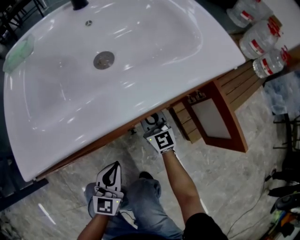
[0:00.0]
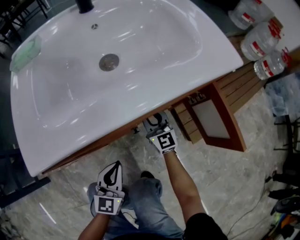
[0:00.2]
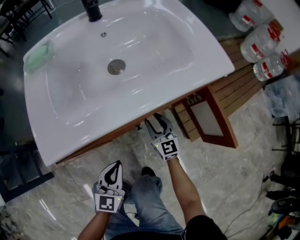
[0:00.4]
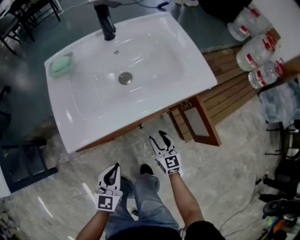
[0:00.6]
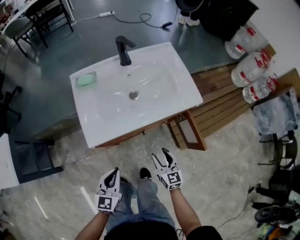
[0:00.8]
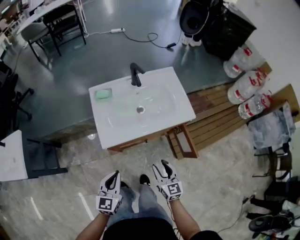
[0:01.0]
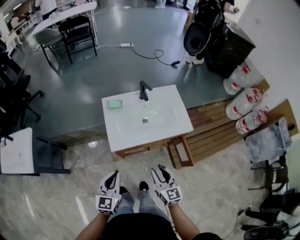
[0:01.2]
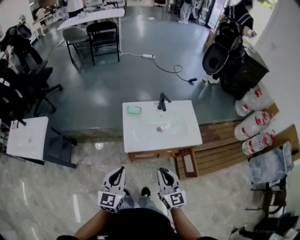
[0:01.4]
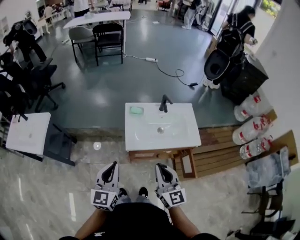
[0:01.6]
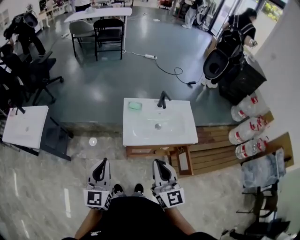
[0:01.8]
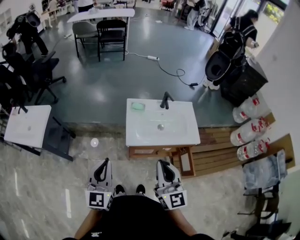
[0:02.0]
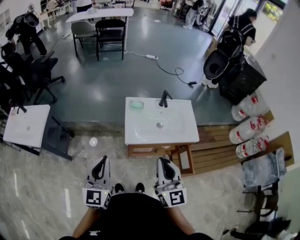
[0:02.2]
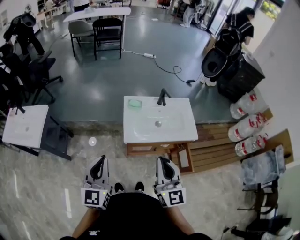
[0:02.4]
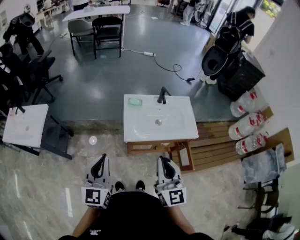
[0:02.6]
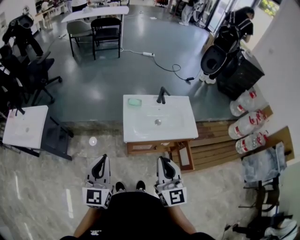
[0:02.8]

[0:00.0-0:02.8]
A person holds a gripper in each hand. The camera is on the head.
0:00.0 to 0:01.4: The left gripper heads upward, covering about 60 cm, and turns by approximately 20 degrees. Meanwhile the right gripper goes some 60 cm upward and backward, and opens, then closes again.
0:01.4 to 0:02.8: The left gripper heads upward and to the left, covering approximately 10 cm; the right gripper travels upward by some 15 cm.

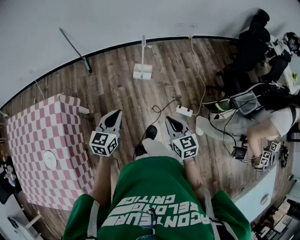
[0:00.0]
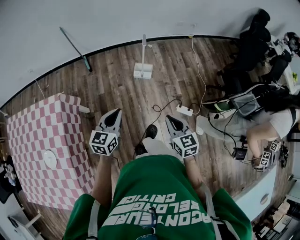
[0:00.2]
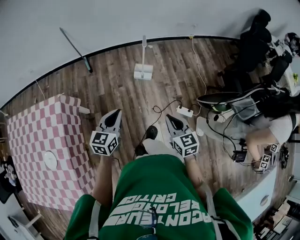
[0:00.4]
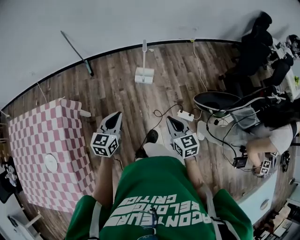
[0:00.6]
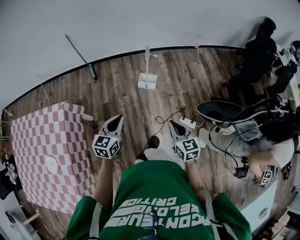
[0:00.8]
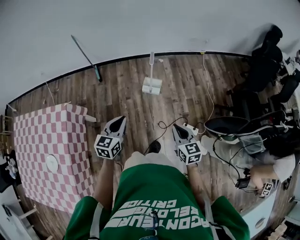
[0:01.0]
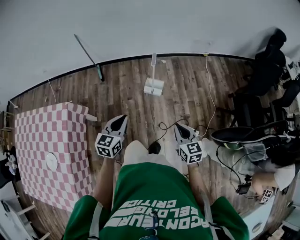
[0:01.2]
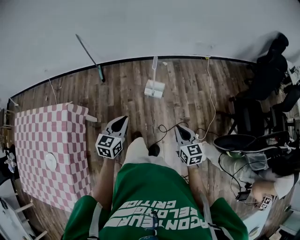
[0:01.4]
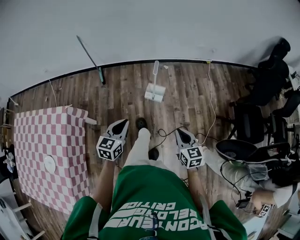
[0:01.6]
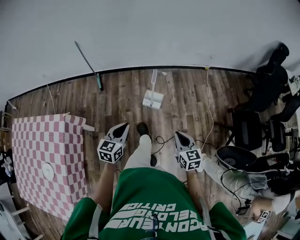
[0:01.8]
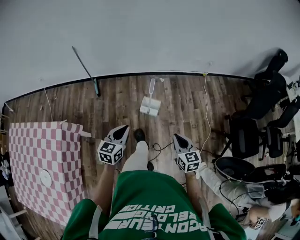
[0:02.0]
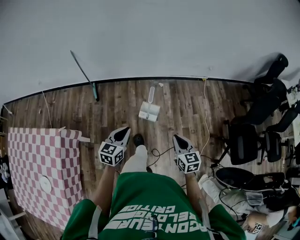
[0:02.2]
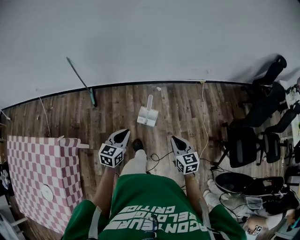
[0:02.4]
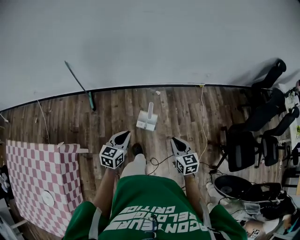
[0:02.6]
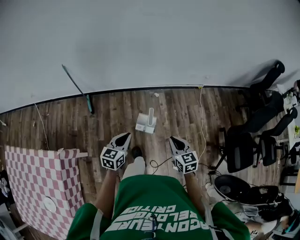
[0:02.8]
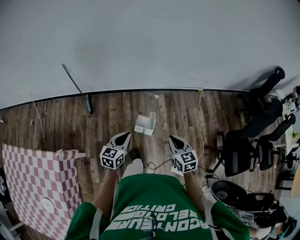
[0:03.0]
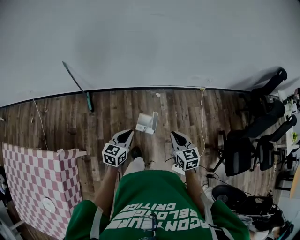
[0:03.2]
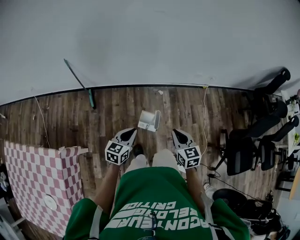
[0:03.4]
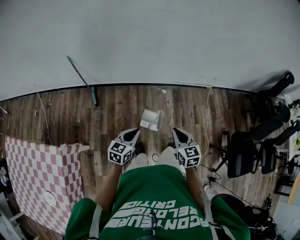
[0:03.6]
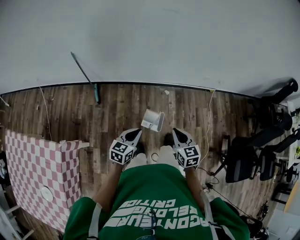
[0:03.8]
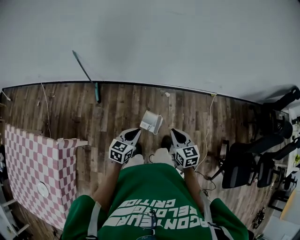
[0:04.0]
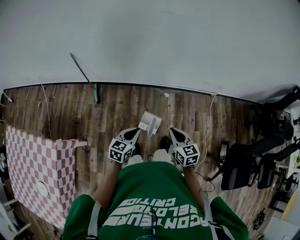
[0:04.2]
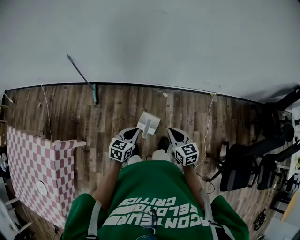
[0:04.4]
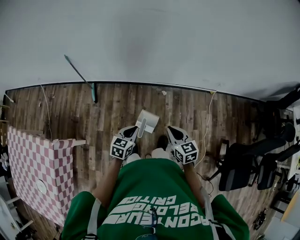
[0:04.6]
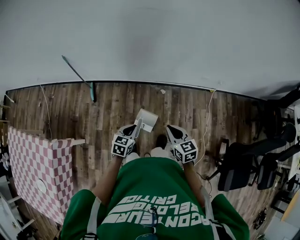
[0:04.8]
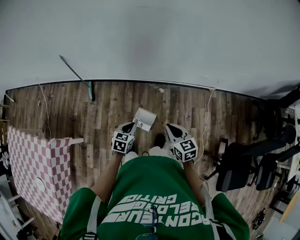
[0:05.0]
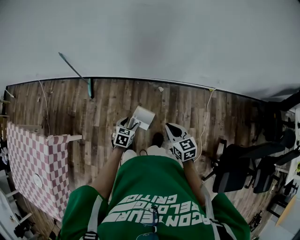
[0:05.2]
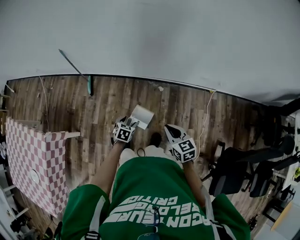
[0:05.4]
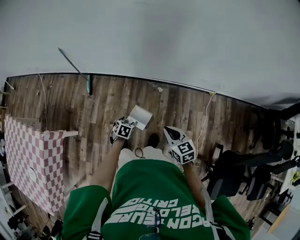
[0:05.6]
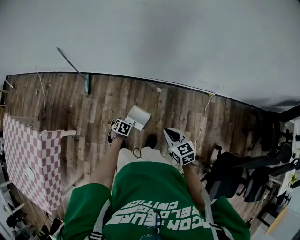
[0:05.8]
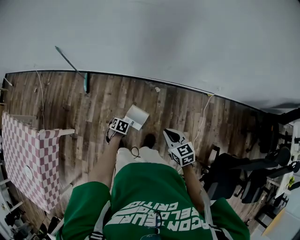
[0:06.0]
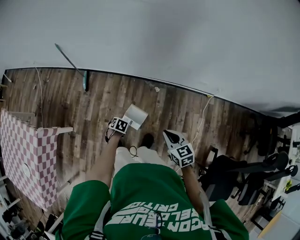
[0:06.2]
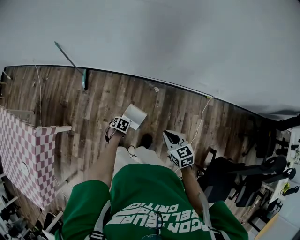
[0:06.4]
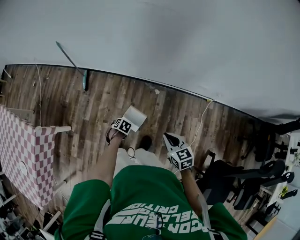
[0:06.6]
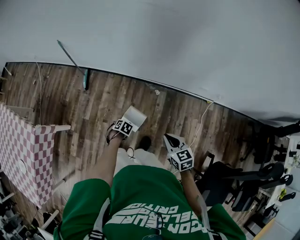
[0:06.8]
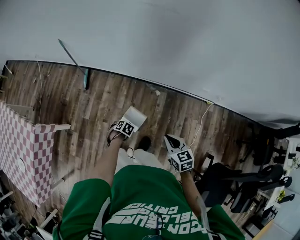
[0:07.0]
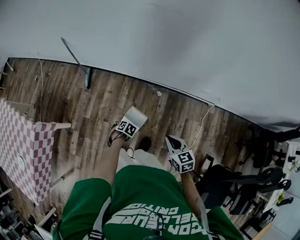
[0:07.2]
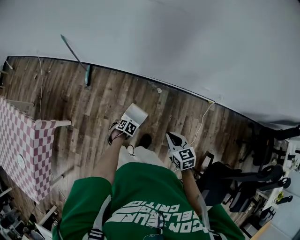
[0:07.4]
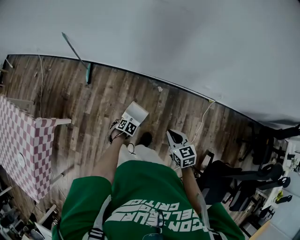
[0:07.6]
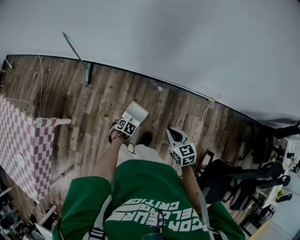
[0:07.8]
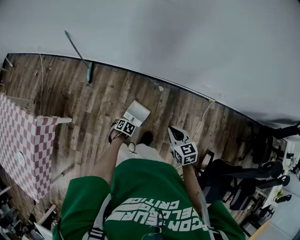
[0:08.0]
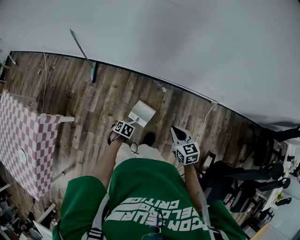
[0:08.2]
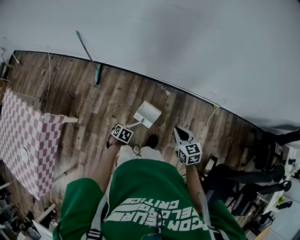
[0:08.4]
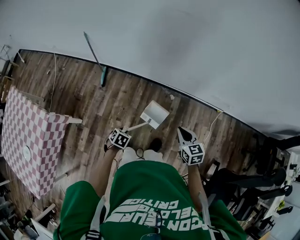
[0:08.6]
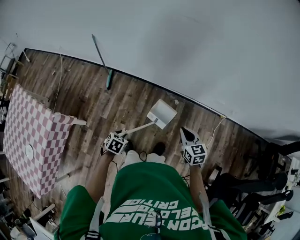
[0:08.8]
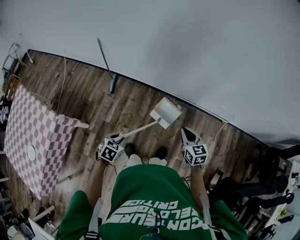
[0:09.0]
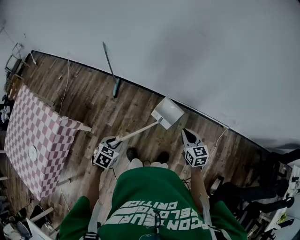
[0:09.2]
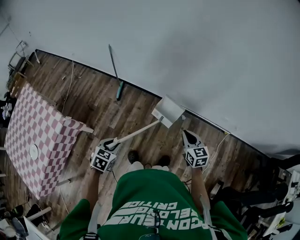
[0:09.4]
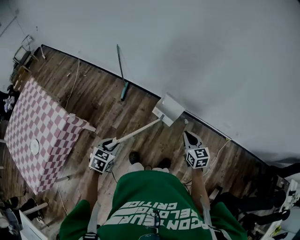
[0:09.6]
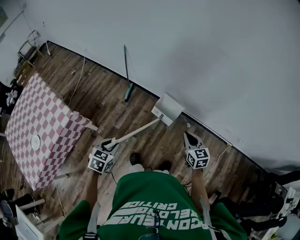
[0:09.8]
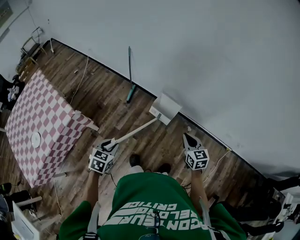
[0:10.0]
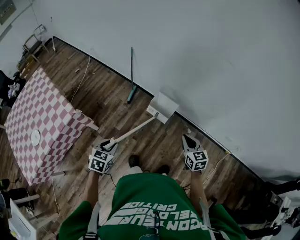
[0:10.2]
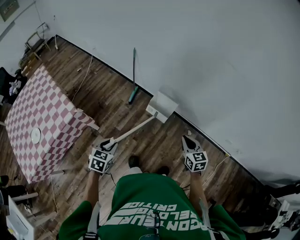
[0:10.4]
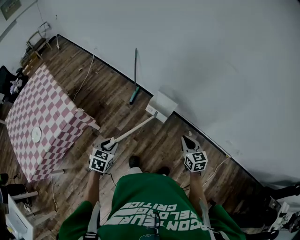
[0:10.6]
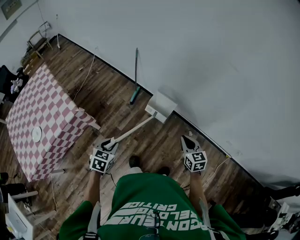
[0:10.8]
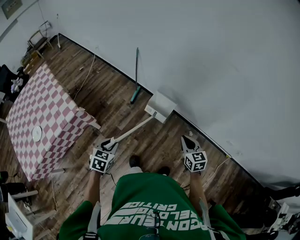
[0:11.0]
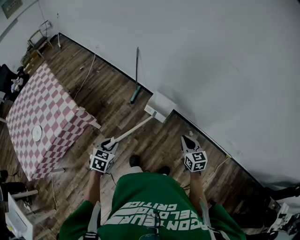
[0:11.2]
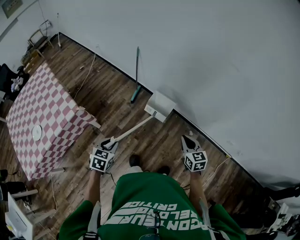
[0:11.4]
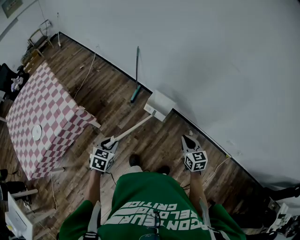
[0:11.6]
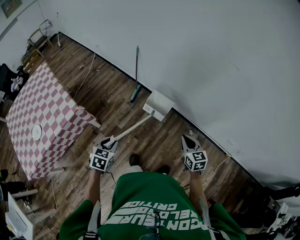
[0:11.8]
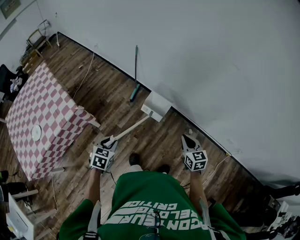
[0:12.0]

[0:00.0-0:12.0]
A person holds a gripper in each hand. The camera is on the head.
0:00.0 to 0:01.6: The left gripper shifts some 15 cm forward; the right gripper travels forward and to the right by approximately 15 cm.
0:01.6 to 0:03.0: The grippers both shift forward by about 30 cm.
0:03.0 to 0:04.4: The left gripper is displaced to the right and forward by roughly 15 cm, while the right gripper is displaced forward by about 10 cm.
0:04.4 to 0:06.0: The left gripper shifts some 20 cm downward, tilts its fingers about 50 degrees downward, and opens up; the right gripper moves about 15 cm.
0:06.0 to 0:07.6: The left gripper closes up.
0:07.6 to 0:09.0: The right gripper changes place by approximately 10 cm. Meanwhile the left gripper shifts about 20 cm upward, and swivels some 30 degrees.
0:09.0 to 0:10.4: The left gripper travels to the left and upward by some 20 cm, and changes its angle by approximately 30 degrees; the right gripper shifts roughly 15 cm to the left.
0:10.4 to 0:12.0: The grippers move only a little.

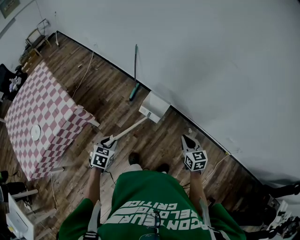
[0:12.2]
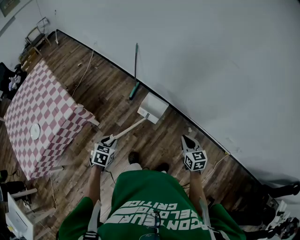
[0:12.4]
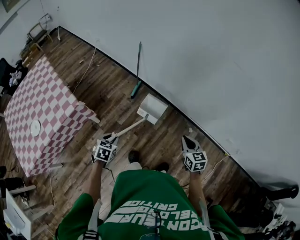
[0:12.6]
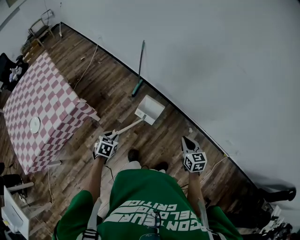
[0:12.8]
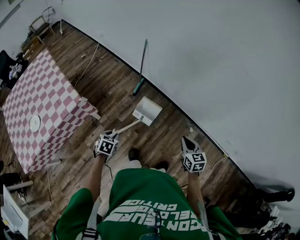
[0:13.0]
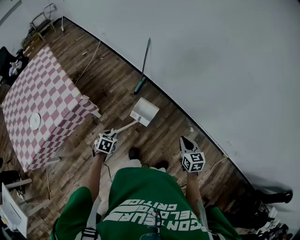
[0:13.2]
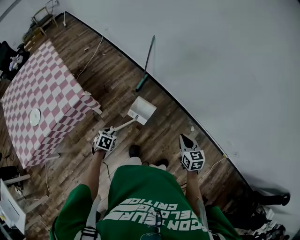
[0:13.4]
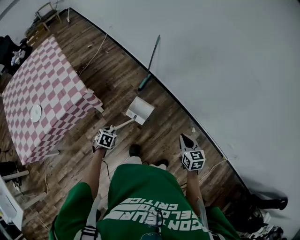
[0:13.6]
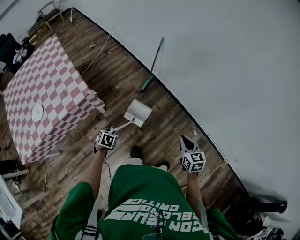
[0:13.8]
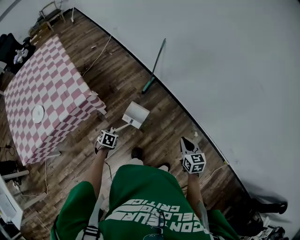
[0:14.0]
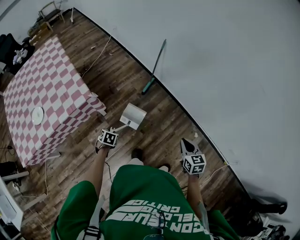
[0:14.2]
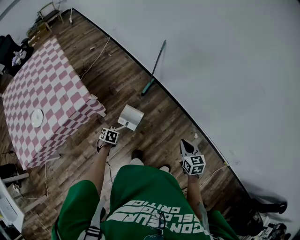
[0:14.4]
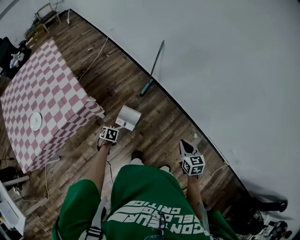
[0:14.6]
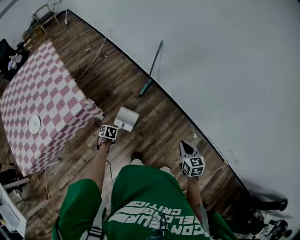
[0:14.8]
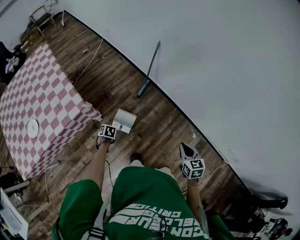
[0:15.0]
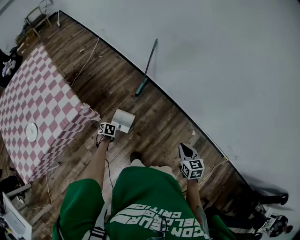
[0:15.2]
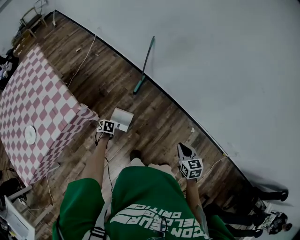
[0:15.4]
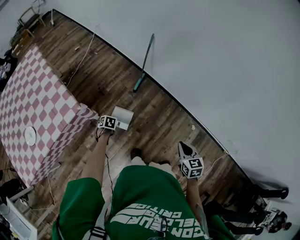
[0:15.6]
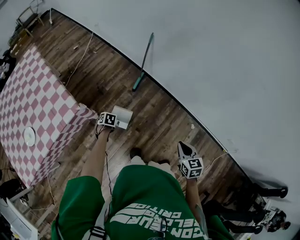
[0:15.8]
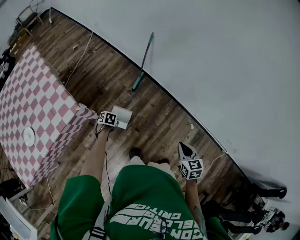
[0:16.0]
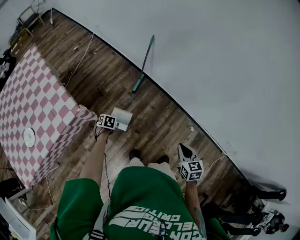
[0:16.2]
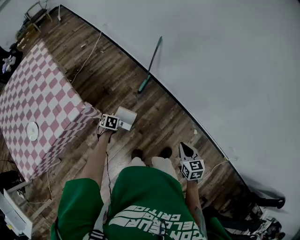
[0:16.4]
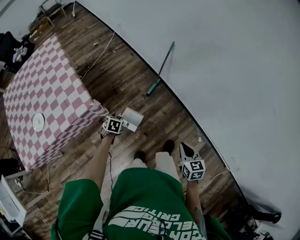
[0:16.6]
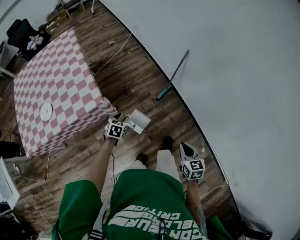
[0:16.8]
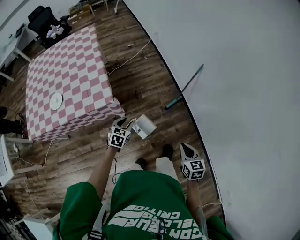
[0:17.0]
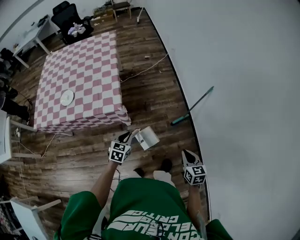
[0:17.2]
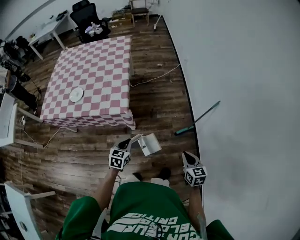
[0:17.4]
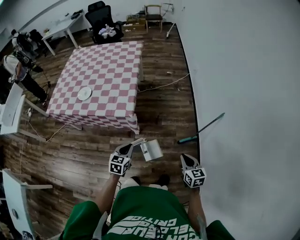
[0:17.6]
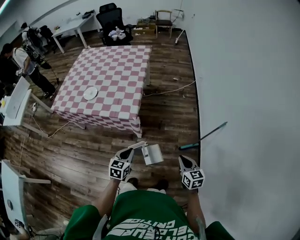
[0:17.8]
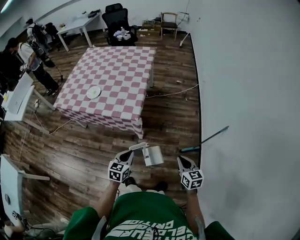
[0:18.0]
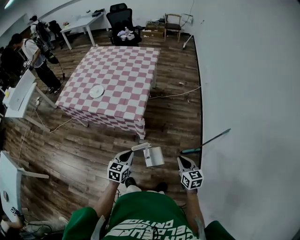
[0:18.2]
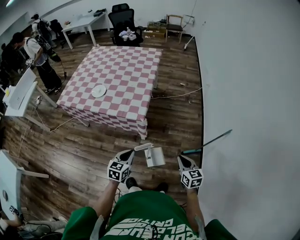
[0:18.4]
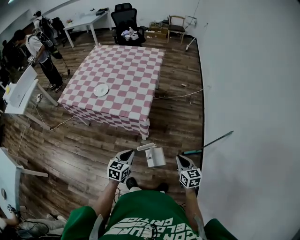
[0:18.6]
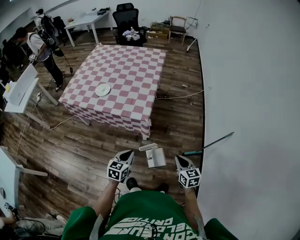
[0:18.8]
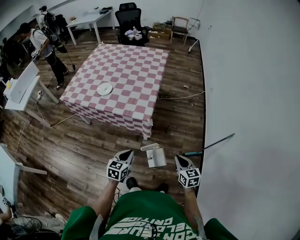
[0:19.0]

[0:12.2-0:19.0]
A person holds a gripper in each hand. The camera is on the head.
0:12.2 to 0:13.6: The right gripper travels to the left by approximately 10 cm, while the left gripper shifts approximately 20 cm downward and to the left.
0:13.6 to 0:15.0: The left gripper shifts by roughly 15 cm; the right gripper moves about 5 cm.
0:15.0 to 0:16.2: The left gripper shifts by some 10 cm.
0:16.2 to 0:17.6: The left gripper is displaced upward by about 25 cm, tips its fingers upward by approximately 40 degrees, and closes up; the right gripper shifts by some 25 cm, and changes its angle by some 50 degrees.
0:17.6 to 0:19.0: The grippers both shift to the left by approximately 10 cm.

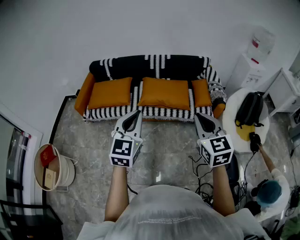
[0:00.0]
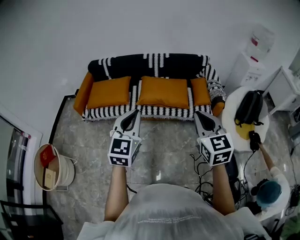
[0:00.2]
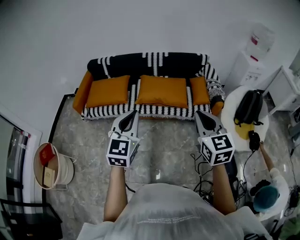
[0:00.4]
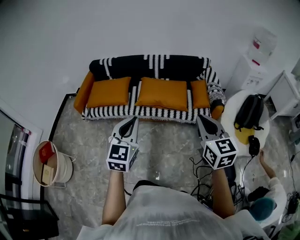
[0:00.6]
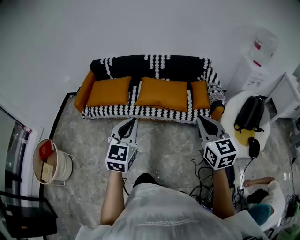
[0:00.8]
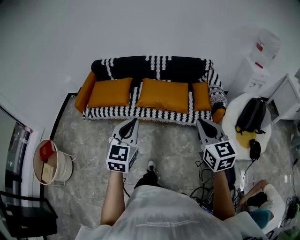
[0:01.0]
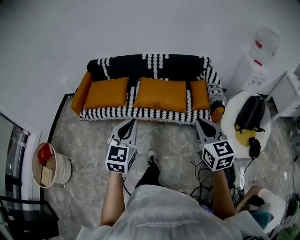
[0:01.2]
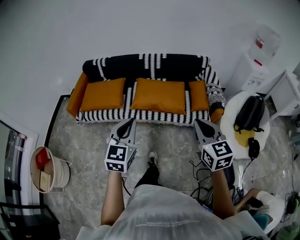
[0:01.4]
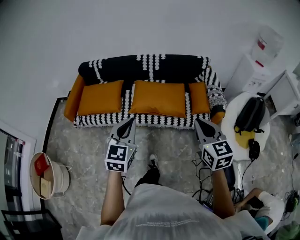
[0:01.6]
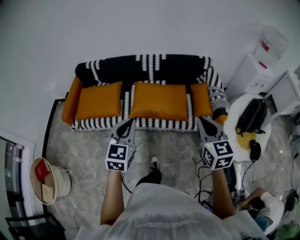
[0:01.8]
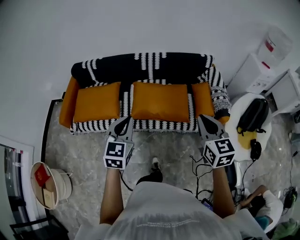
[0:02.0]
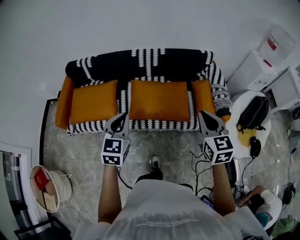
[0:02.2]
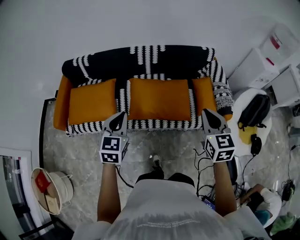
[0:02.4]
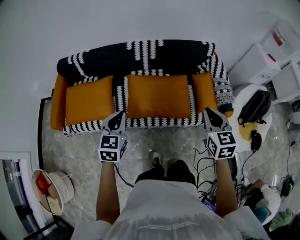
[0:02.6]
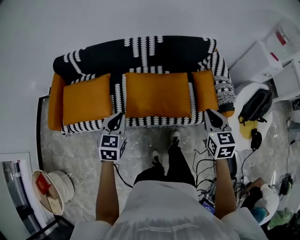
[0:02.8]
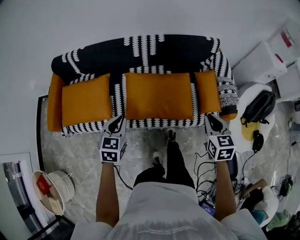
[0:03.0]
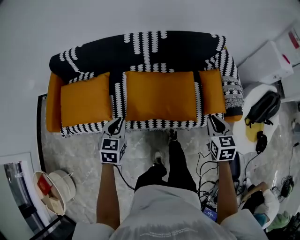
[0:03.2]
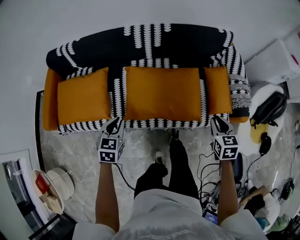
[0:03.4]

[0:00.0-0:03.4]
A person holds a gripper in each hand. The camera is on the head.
0:00.0 to 0:01.6: The right gripper shifts some 15 cm forward and to the right. The left gripper heads forward and downward, covering approximately 15 cm.
0:01.6 to 0:03.4: The right gripper is displaced downward and forward by roughly 40 cm, and swivels some 30 degrees; the left gripper shifts approximately 50 cm forward, downward and to the left, and rotates some 30 degrees.
